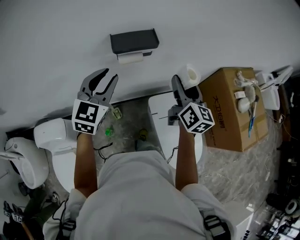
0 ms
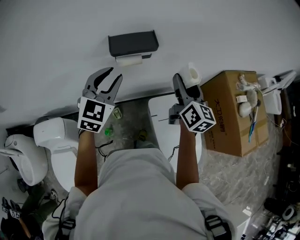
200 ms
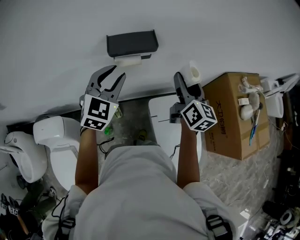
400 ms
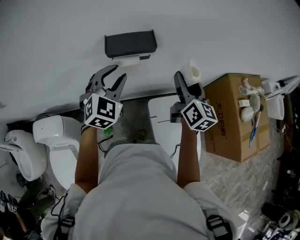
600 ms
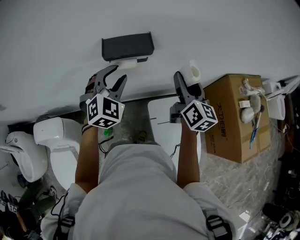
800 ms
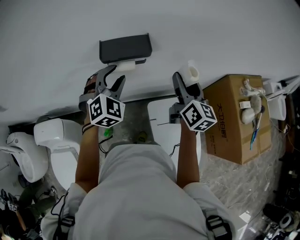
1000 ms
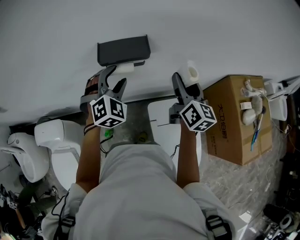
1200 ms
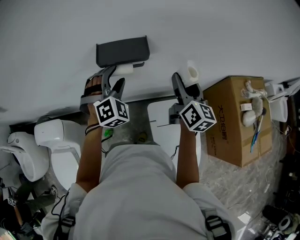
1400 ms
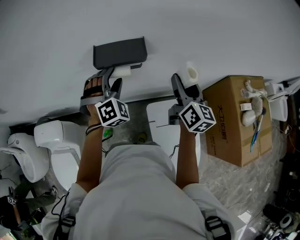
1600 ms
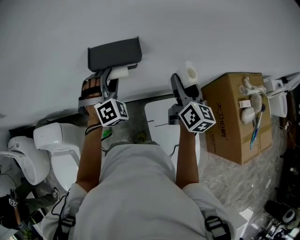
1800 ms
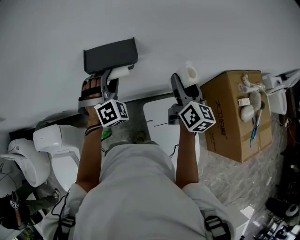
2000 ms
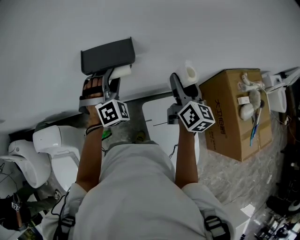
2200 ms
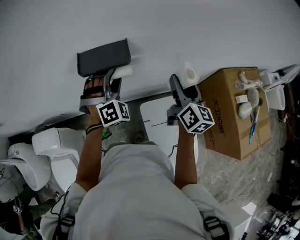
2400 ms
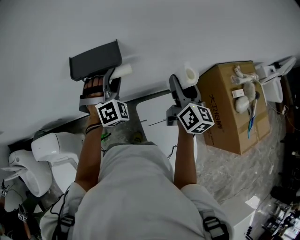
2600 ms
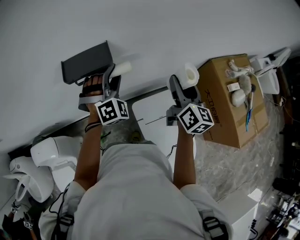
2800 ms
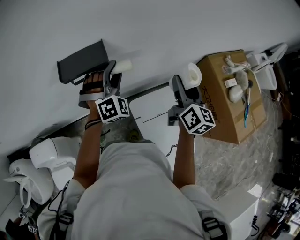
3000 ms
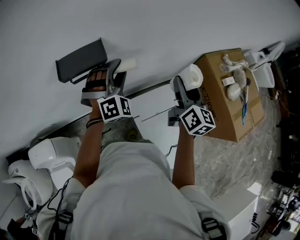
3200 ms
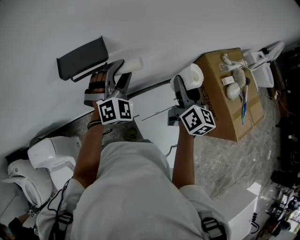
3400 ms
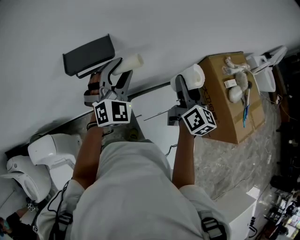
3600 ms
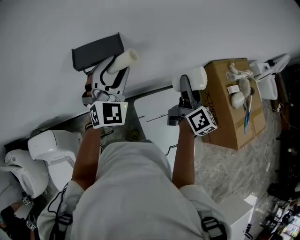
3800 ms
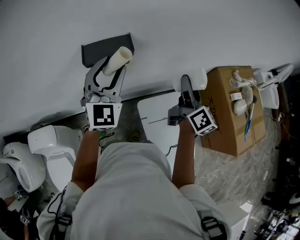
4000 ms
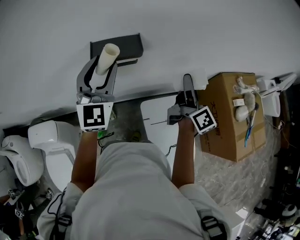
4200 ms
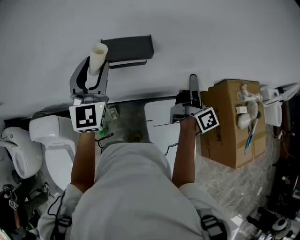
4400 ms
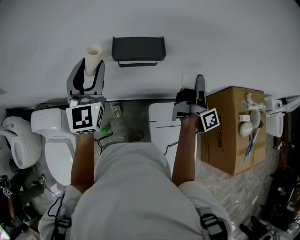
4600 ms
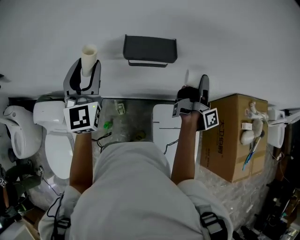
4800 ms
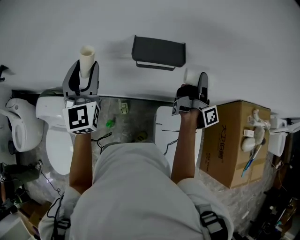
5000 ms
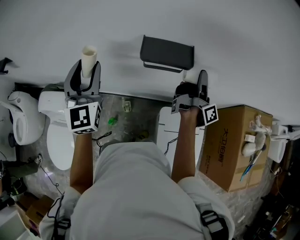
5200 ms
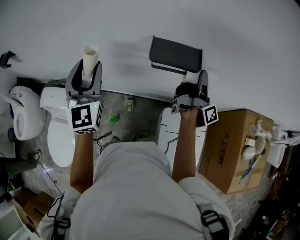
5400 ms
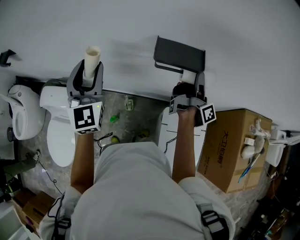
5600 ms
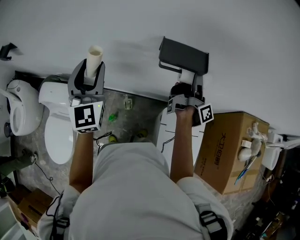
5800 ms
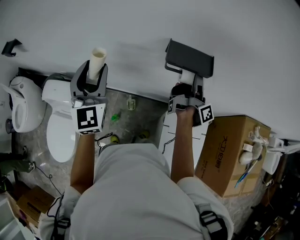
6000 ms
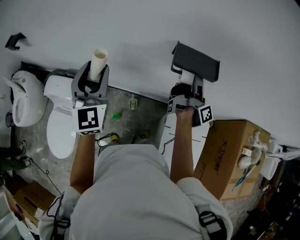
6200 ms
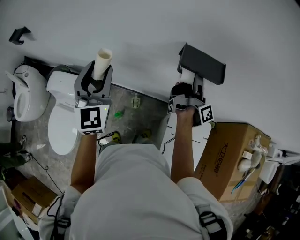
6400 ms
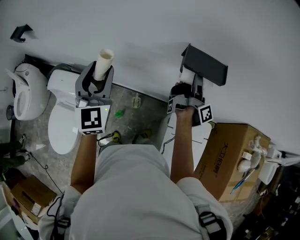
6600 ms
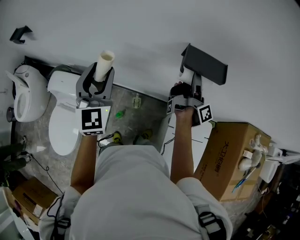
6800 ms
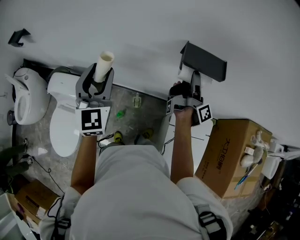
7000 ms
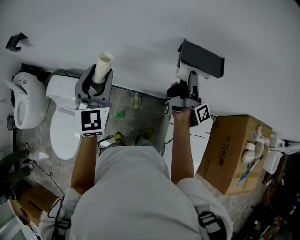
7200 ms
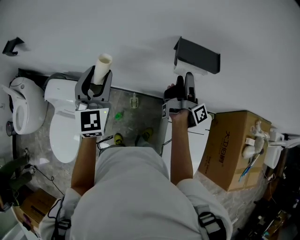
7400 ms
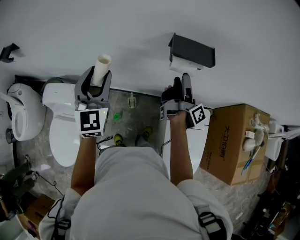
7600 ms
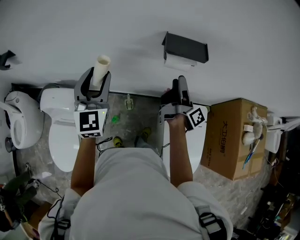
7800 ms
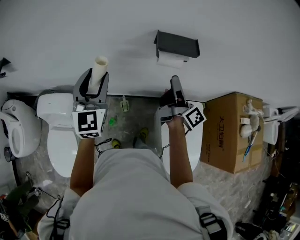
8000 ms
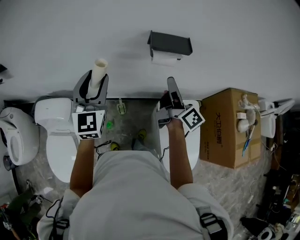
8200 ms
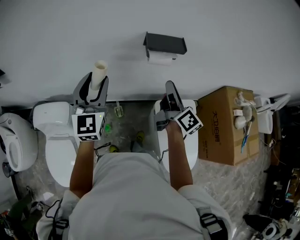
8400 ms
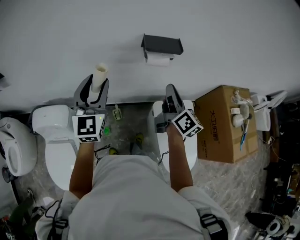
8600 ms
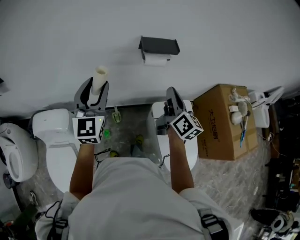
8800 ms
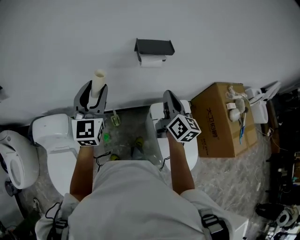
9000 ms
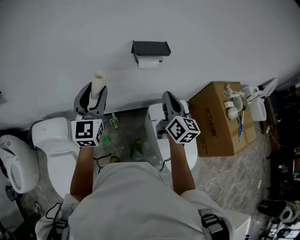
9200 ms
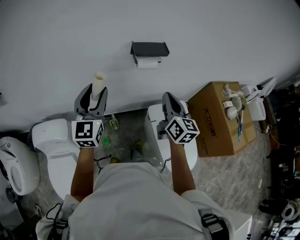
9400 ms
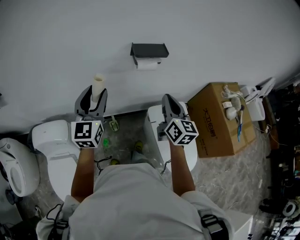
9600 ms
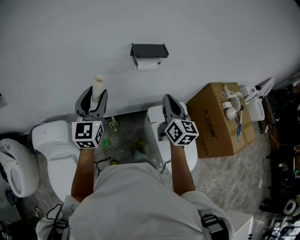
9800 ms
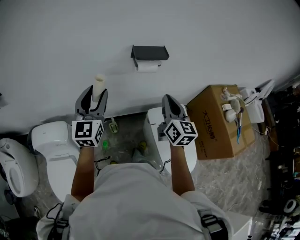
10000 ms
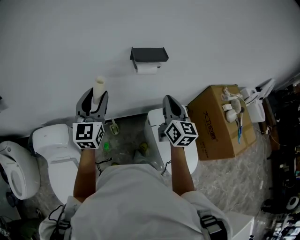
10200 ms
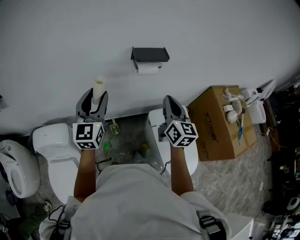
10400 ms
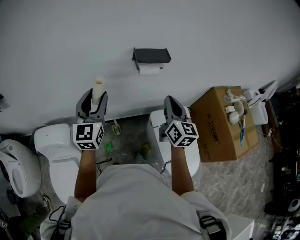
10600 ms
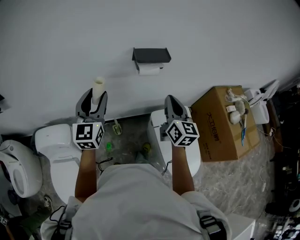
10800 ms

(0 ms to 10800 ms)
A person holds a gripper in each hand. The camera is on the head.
0 ms - 1600 ms: The right gripper goes about 10 cm forward, while the left gripper is displaced forward, downward and to the right by about 15 cm, twists about 40 degrees clockwise, seen from behind, and opens.
1600 ms - 3000 ms: The right gripper shifts some 10 cm to the right and backward; the left gripper is displaced to the right by about 15 cm.
3000 ms - 4600 ms: The left gripper goes about 30 cm to the left, upward and backward, and rotates around the line of its fingers by roughly 60 degrees, counterclockwise from behind; the right gripper moves to the left, roughly 10 cm, and twists approximately 50 degrees clockwise, seen from behind.
4600 ms - 6200 ms: The right gripper moves to the left and forward, some 20 cm, and changes its angle by about 20 degrees; the left gripper travels to the left by some 15 cm, and changes its angle by about 20 degrees.
6200 ms - 7800 ms: The right gripper goes approximately 10 cm backward and to the left.
7800 ms - 9200 ms: The right gripper moves backward and upward, some 15 cm, rotates around the line of its fingers by about 60 degrees, counterclockwise from behind, and closes. Meanwhile the left gripper changes place by some 5 cm, and turns by approximately 20 degrees.
9200 ms - 10800 ms: The grippers make only small movements.

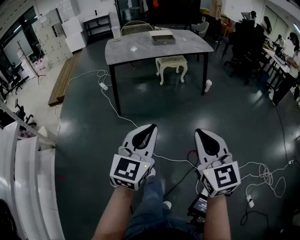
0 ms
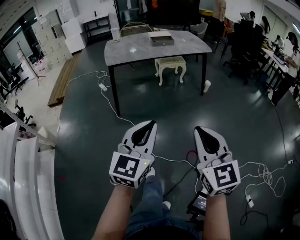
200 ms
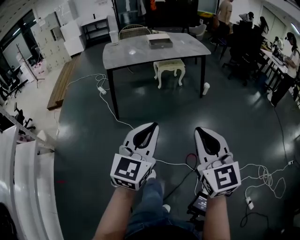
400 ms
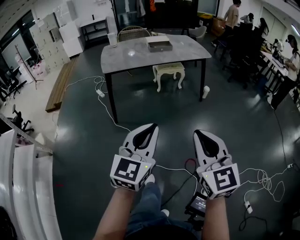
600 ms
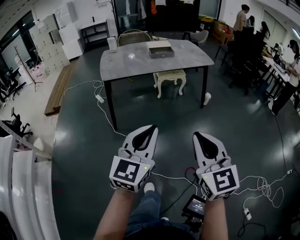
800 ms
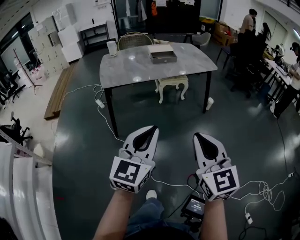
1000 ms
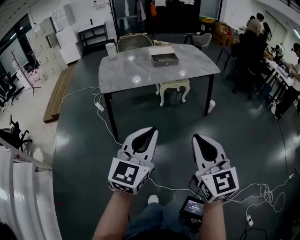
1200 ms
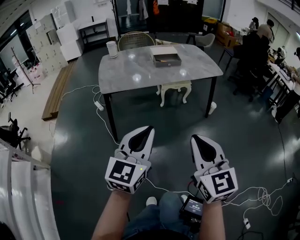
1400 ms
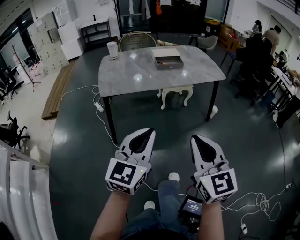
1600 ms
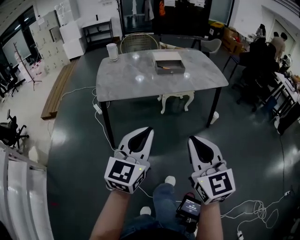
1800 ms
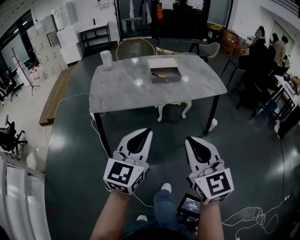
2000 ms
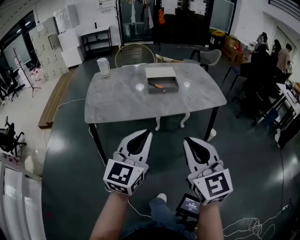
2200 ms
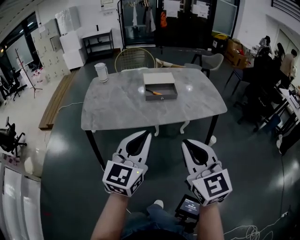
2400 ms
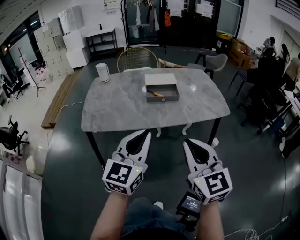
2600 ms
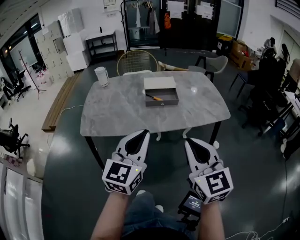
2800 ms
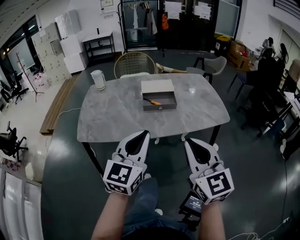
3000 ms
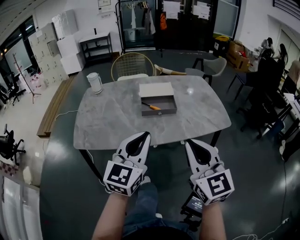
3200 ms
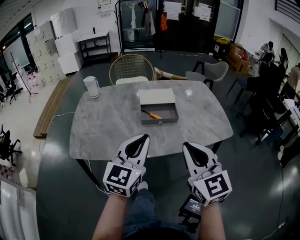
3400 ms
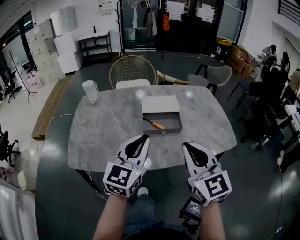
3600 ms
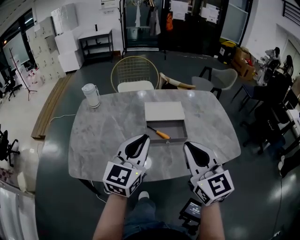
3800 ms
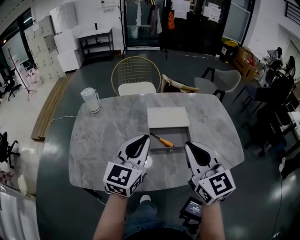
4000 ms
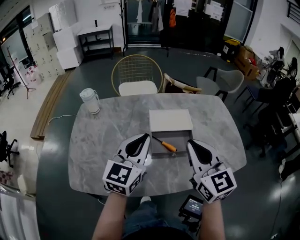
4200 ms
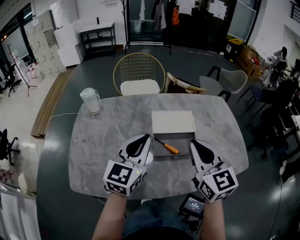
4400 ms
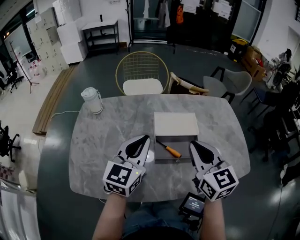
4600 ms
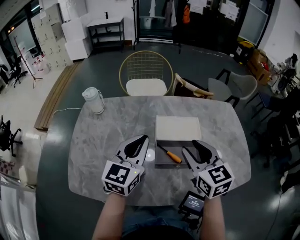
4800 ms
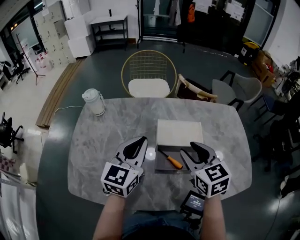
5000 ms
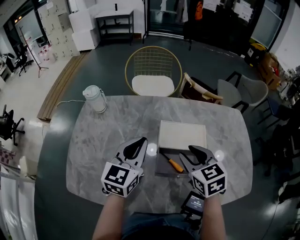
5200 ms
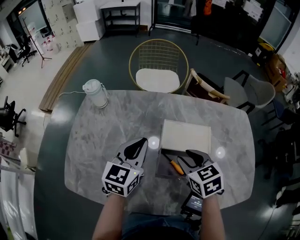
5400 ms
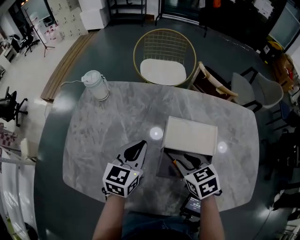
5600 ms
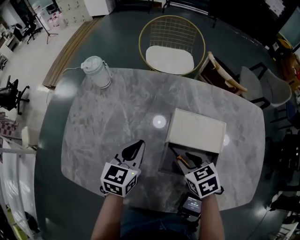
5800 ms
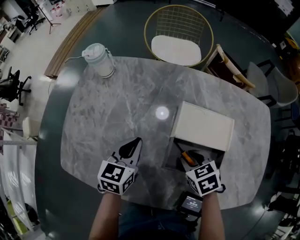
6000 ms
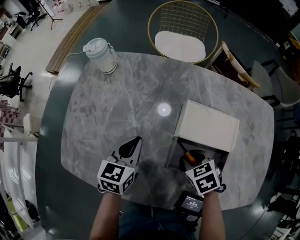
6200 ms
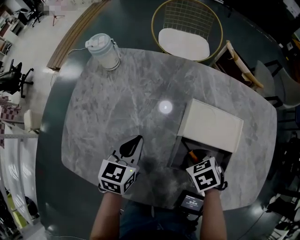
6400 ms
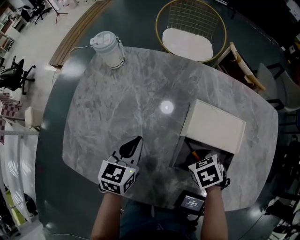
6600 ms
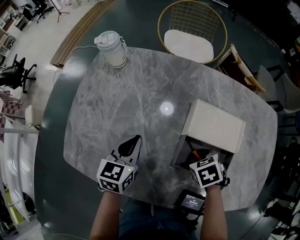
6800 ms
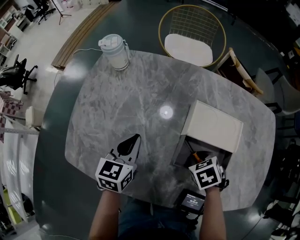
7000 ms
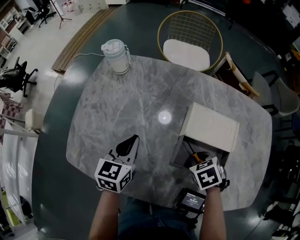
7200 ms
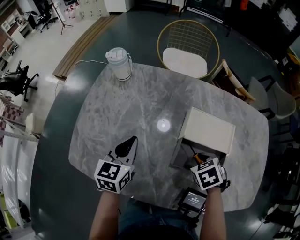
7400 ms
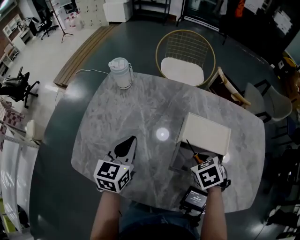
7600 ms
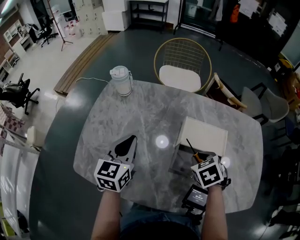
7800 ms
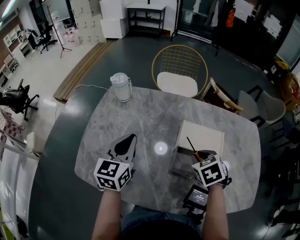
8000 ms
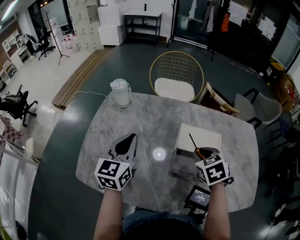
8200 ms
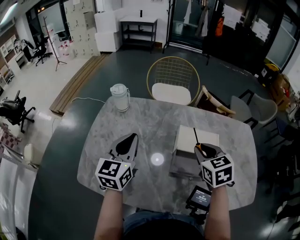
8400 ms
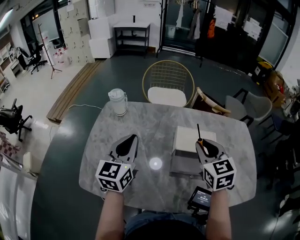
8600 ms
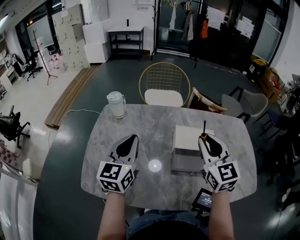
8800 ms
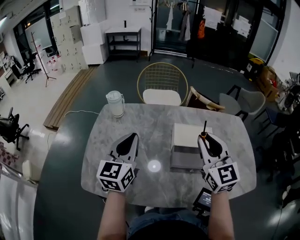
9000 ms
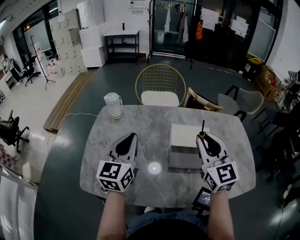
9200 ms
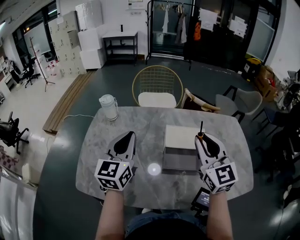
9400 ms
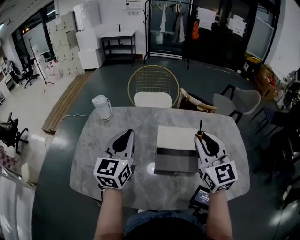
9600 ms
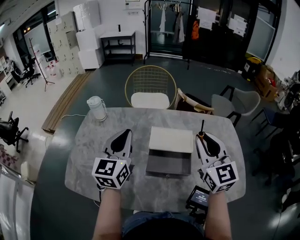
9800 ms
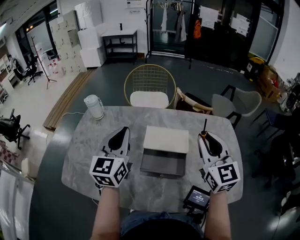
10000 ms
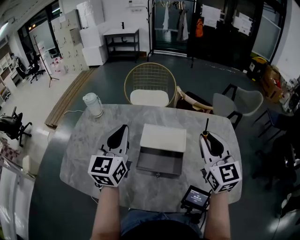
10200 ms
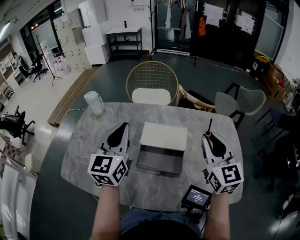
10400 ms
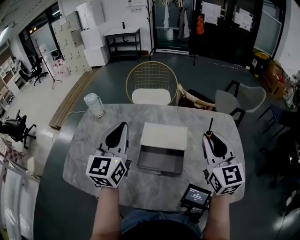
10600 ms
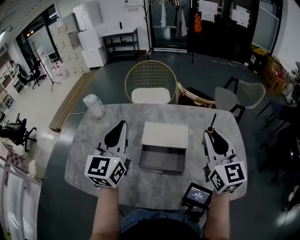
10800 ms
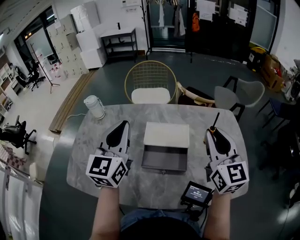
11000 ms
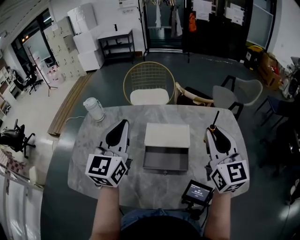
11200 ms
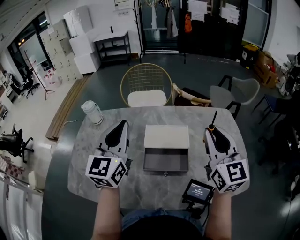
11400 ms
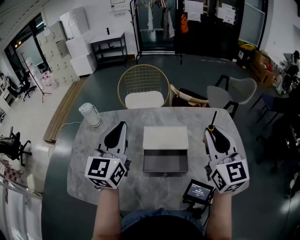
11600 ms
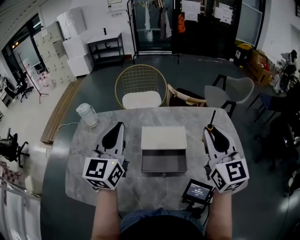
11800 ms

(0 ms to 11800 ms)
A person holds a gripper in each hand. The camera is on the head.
0 ms - 1400 ms: Both grippers move forward, about 25 cm.
1400 ms - 3000 ms: The two grippers go some 35 cm forward.
3000 ms - 4400 ms: The grippers both shift forward by approximately 35 cm.
4400 ms - 6000 ms: The grippers both shift downward by some 25 cm. The left gripper swivels roughly 40 degrees, while the right gripper tips its fingers downward by about 50 degrees, and opens its fingers.
6000 ms - 7400 ms: The left gripper ends up roughly 5 cm from where it was.
7400 ms - 8800 ms: The left gripper is displaced upward by some 15 cm, and changes its angle by some 20 degrees; the right gripper moves upward, about 25 cm, and angles its fingers upward, by approximately 60 degrees.
8800 ms - 10400 ms: Both grippers travel together to the right, about 20 cm.
10400 ms - 11800 ms: The grippers stay close to where they were, moving slightly.

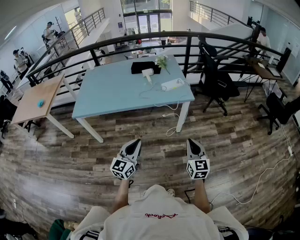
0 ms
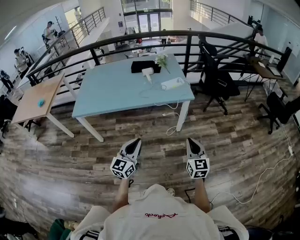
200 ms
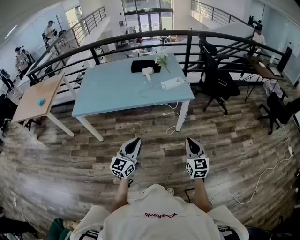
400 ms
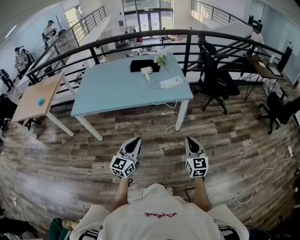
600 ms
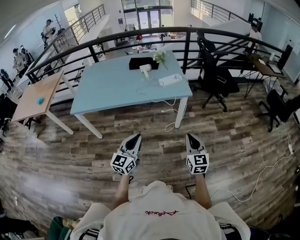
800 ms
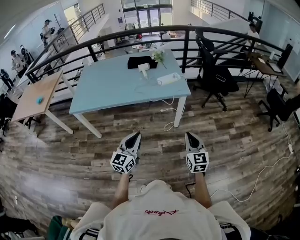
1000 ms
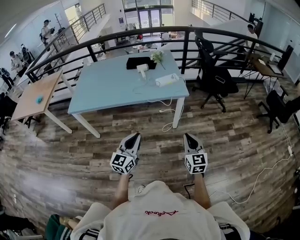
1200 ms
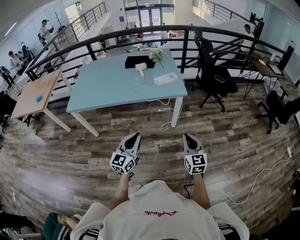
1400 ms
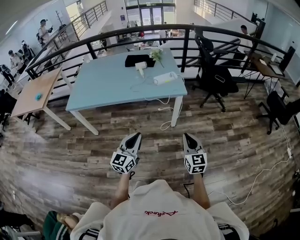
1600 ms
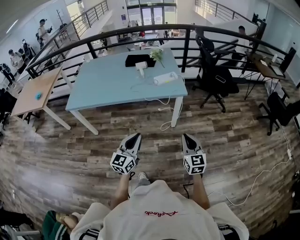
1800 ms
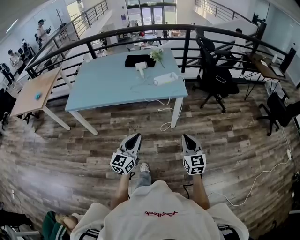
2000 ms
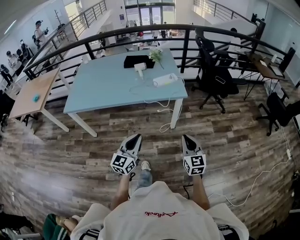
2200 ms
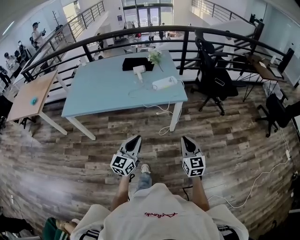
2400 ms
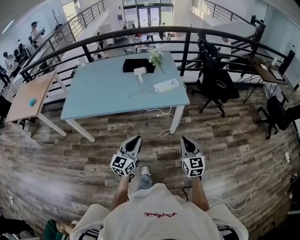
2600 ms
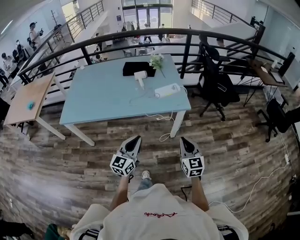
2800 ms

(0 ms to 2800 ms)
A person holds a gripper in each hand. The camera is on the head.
0 ms - 1400 ms: Both grippers travel together to the right, roughly 10 cm.
1400 ms - 2800 ms: The left gripper heads forward, covering roughly 15 cm. The right gripper goes about 15 cm forward and to the left.
